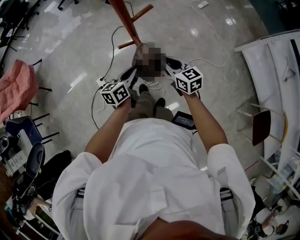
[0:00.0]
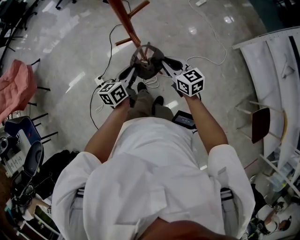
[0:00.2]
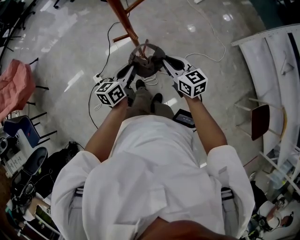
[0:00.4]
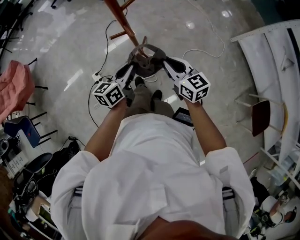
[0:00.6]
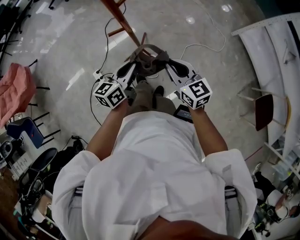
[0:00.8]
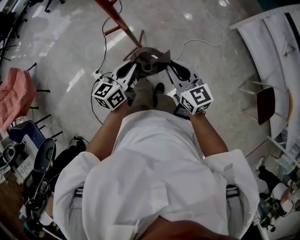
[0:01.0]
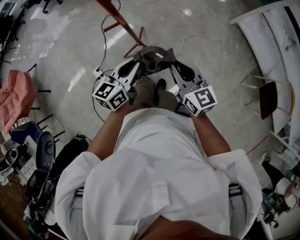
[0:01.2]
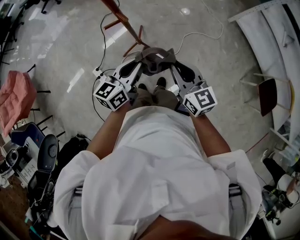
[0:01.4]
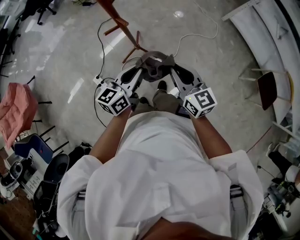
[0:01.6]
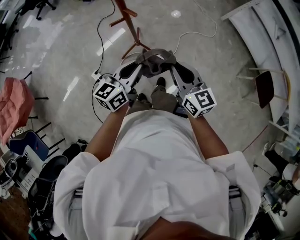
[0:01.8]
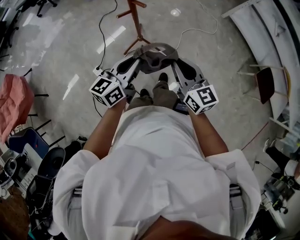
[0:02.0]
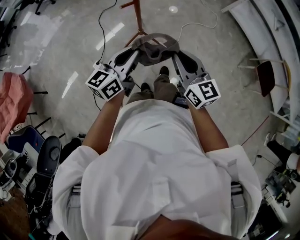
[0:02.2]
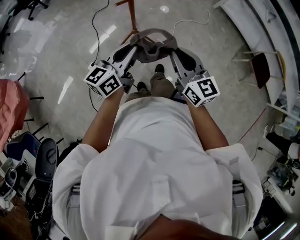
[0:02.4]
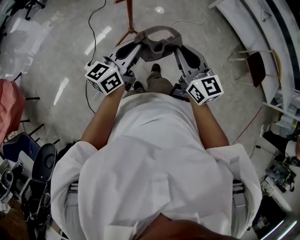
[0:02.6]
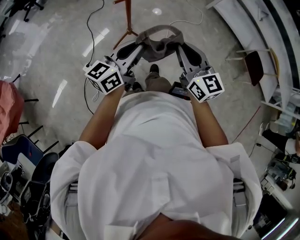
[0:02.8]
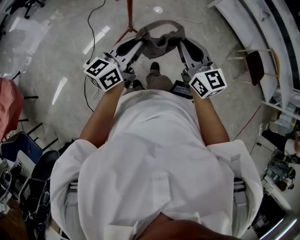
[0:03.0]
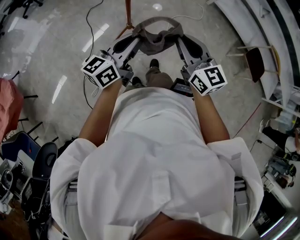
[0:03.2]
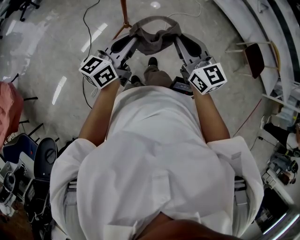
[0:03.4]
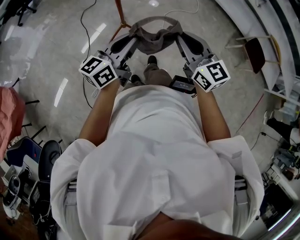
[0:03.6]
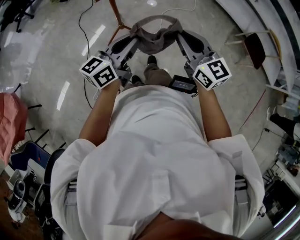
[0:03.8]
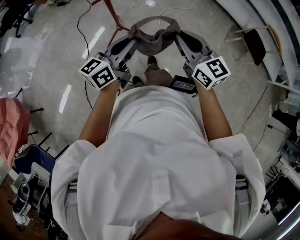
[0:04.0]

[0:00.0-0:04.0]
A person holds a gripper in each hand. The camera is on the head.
0:00.0 to 0:01.4: The right gripper heads backward and upward, covering some 20 cm, and rotates approximately 20 degrees, while the left gripper travels backward, upward and to the right by approximately 15 cm, and swivels roughly 20 degrees.
0:01.4 to 0:02.6: The left gripper is displaced backward and upward by approximately 15 cm, while the right gripper shifts roughly 15 cm backward.
0:02.6 to 0:04.0: The grippers make only small movements.

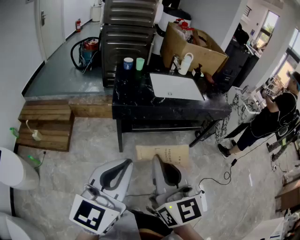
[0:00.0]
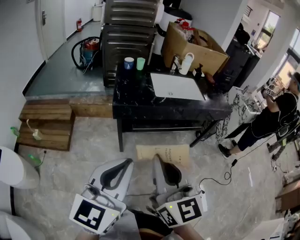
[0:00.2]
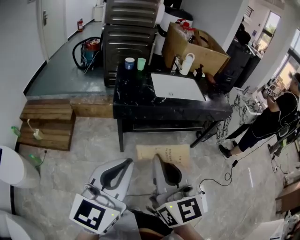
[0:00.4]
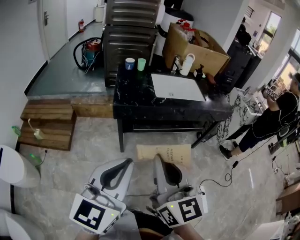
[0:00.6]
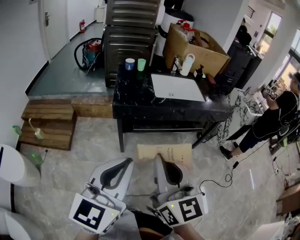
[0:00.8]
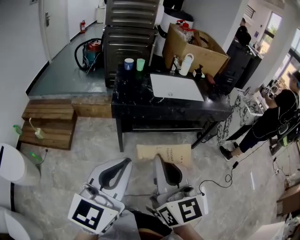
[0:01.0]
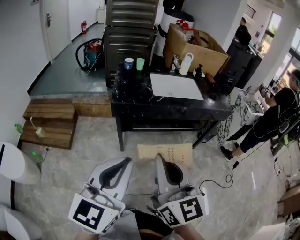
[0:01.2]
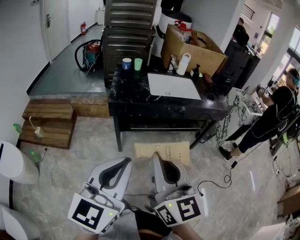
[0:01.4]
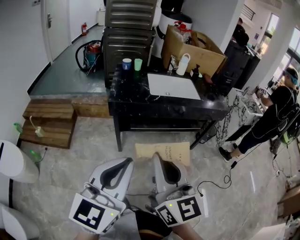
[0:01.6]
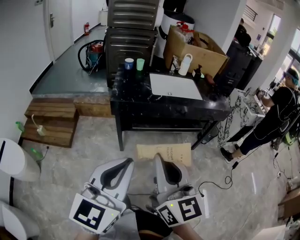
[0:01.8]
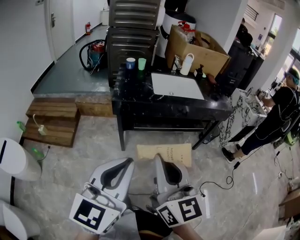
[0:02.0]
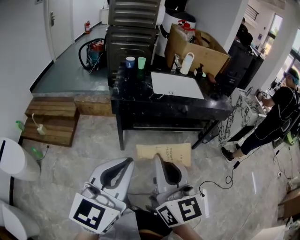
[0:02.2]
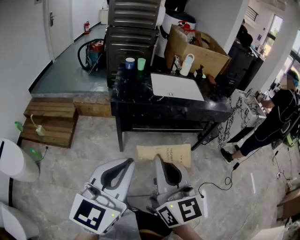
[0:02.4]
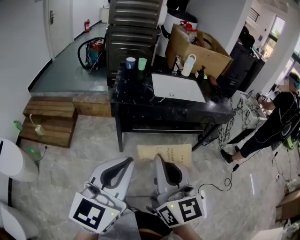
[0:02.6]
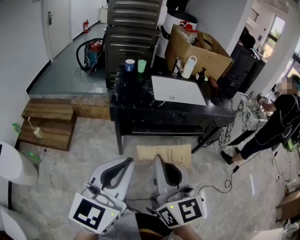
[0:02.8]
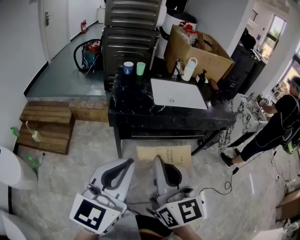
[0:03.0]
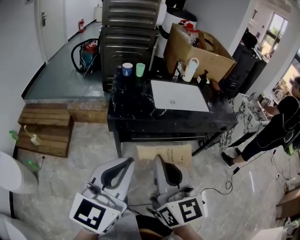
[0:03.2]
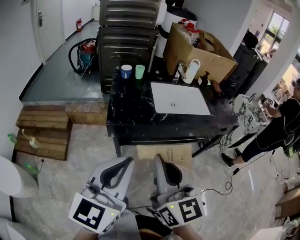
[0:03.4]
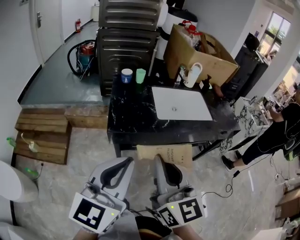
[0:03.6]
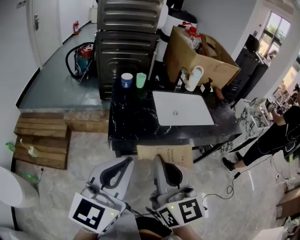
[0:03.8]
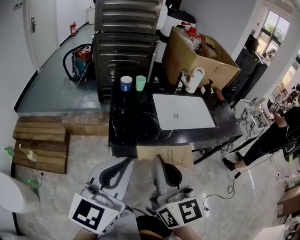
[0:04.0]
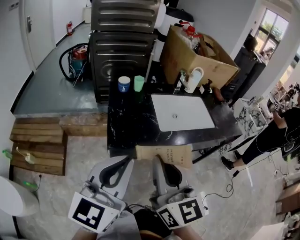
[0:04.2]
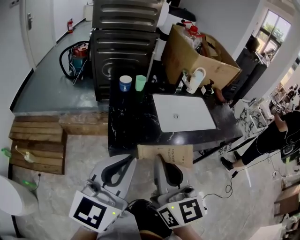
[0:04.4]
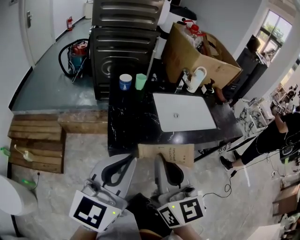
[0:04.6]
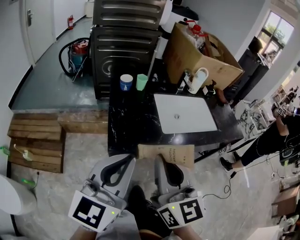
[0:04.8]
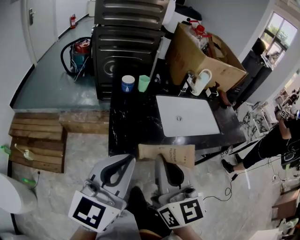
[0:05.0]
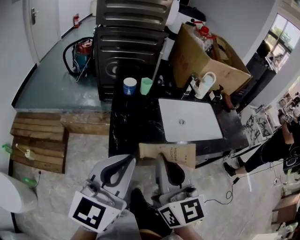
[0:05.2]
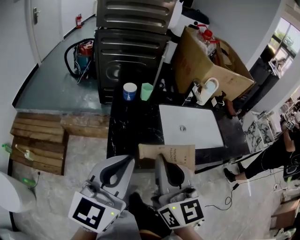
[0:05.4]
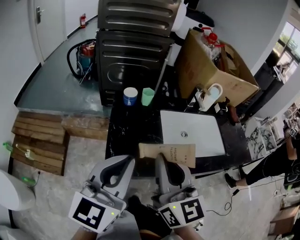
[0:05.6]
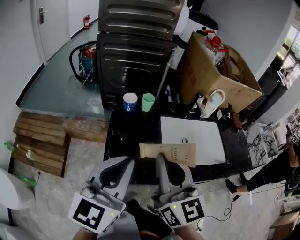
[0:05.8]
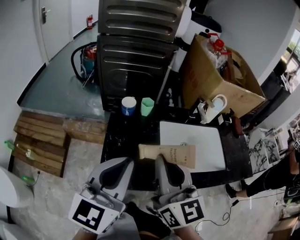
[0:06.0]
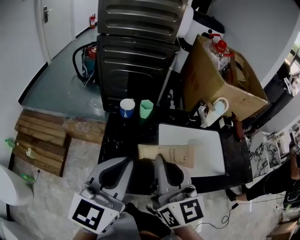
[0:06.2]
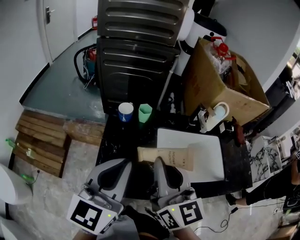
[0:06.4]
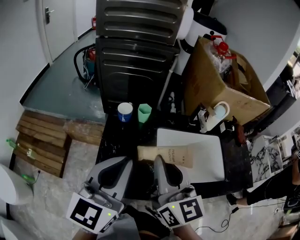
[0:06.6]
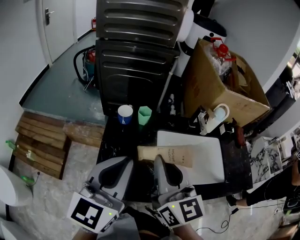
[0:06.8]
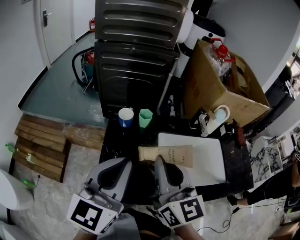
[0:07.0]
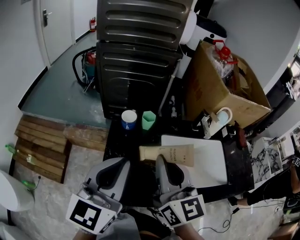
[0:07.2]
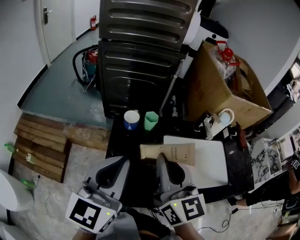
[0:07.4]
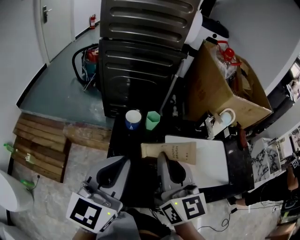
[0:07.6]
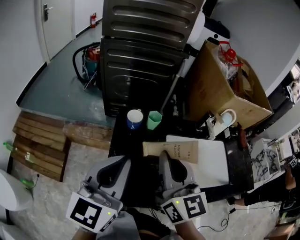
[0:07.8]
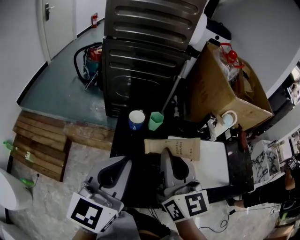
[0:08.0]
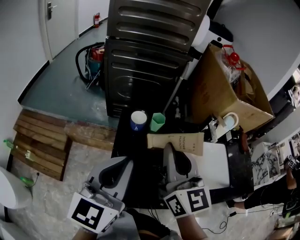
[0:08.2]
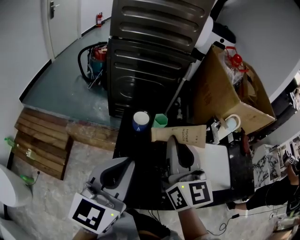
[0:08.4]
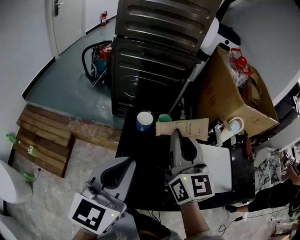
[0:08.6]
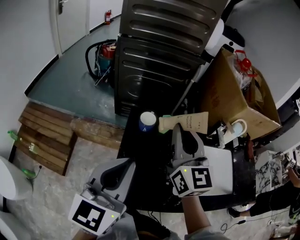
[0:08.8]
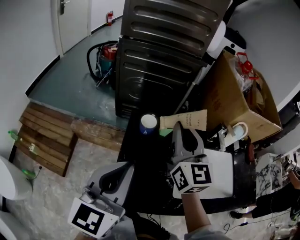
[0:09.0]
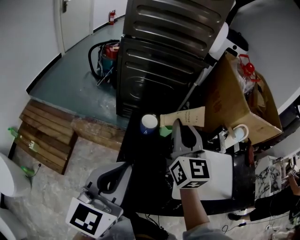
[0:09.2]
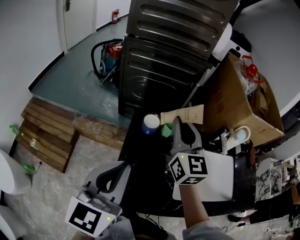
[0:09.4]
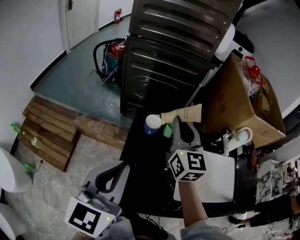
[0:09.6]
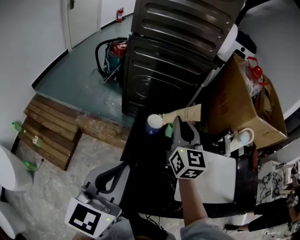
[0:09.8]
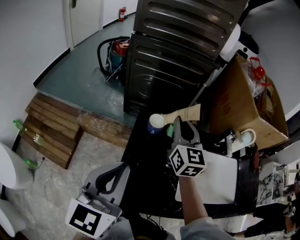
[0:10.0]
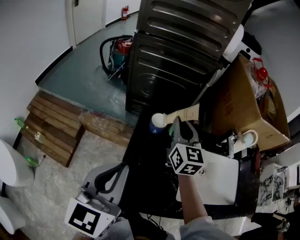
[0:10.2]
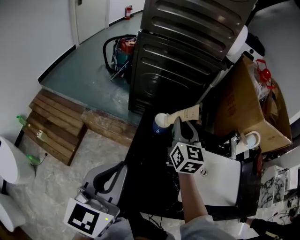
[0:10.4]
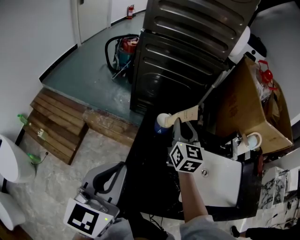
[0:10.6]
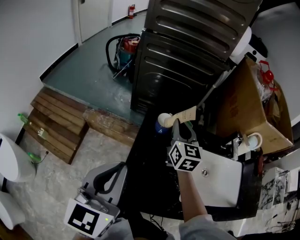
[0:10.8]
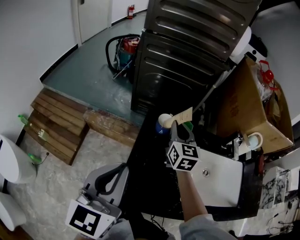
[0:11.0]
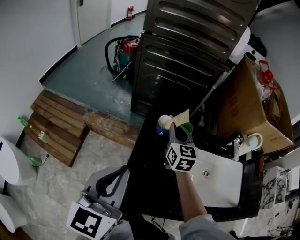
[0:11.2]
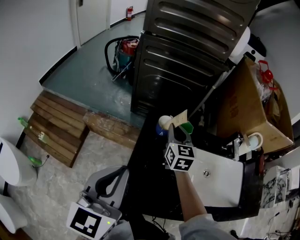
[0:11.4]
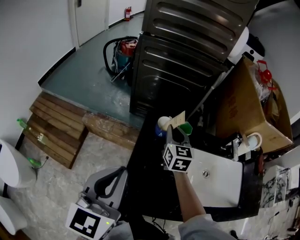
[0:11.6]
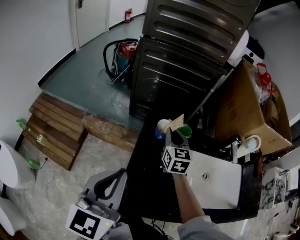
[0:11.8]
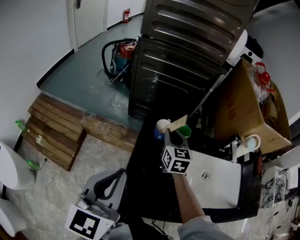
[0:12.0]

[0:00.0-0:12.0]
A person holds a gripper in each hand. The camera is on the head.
0:00.0 to 0:01.6: The grippers both shift to the right by roughly 5 cm.
0:01.6 to 0:03.0: Both grippers move forward, about 10 cm.
0:03.0 to 0:04.4: Both grippers move forward and to the left, approximately 25 cm.
0:04.4 to 0:06.0: Both grippers travel together forward, approximately 20 cm.
0:06.0 to 0:07.6: The two grippers go approximately 10 cm forward.
0:07.6 to 0:09.0: The right gripper travels forward by about 10 cm.
0:09.0 to 0:10.4: The right gripper travels downward and forward by about 15 cm.
0:10.4 to 0:12.0: The right gripper shifts approximately 10 cm downward.

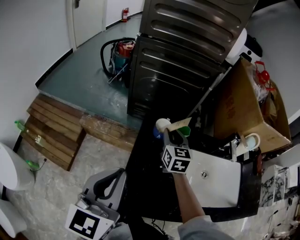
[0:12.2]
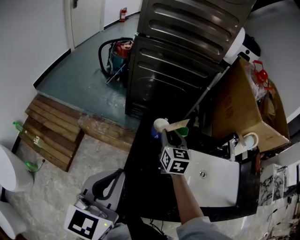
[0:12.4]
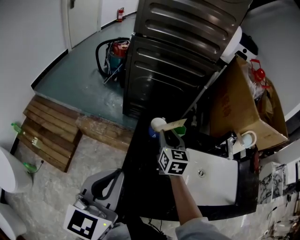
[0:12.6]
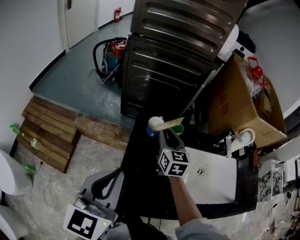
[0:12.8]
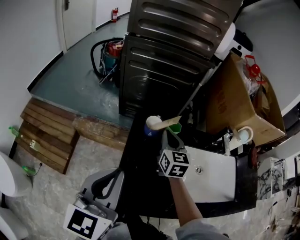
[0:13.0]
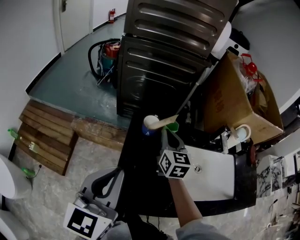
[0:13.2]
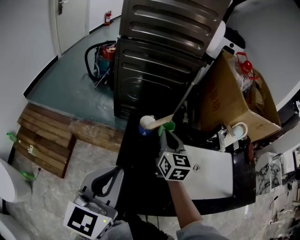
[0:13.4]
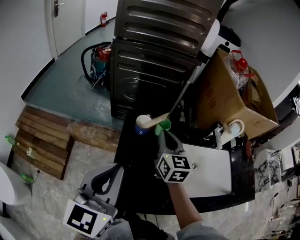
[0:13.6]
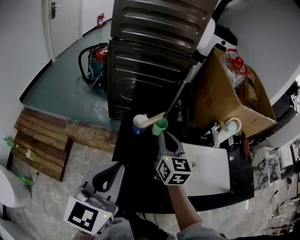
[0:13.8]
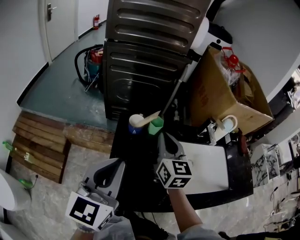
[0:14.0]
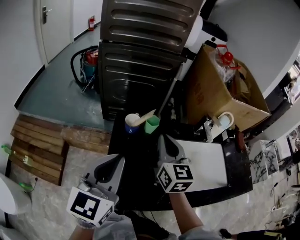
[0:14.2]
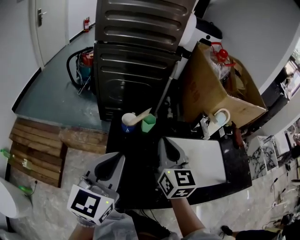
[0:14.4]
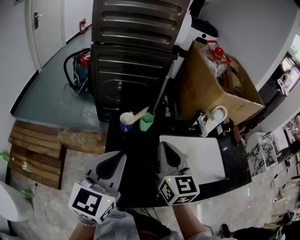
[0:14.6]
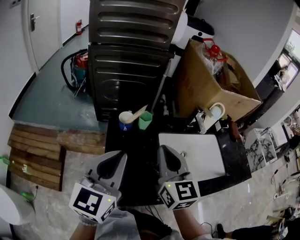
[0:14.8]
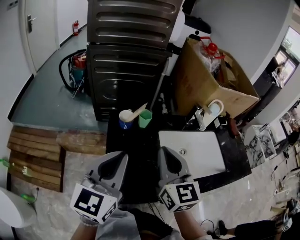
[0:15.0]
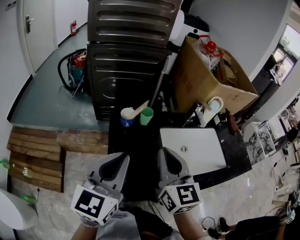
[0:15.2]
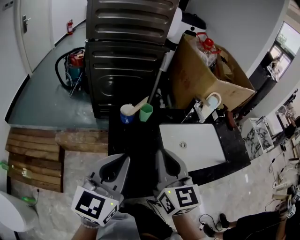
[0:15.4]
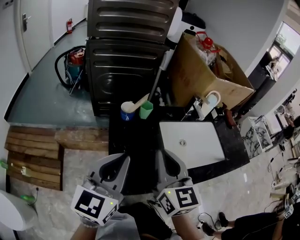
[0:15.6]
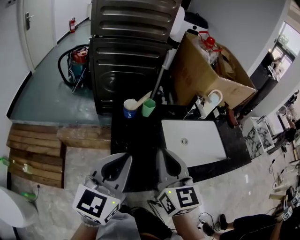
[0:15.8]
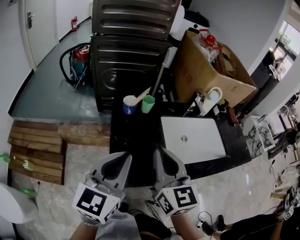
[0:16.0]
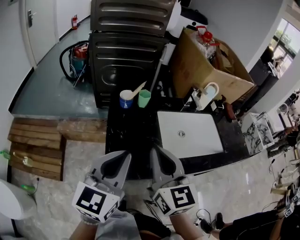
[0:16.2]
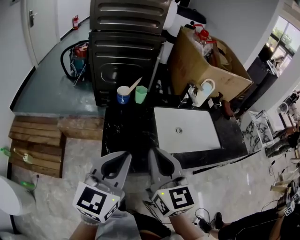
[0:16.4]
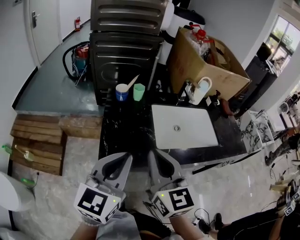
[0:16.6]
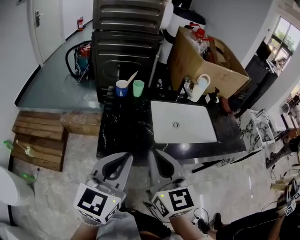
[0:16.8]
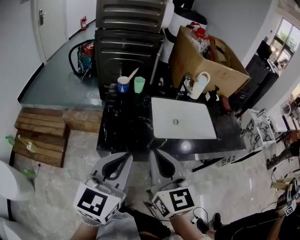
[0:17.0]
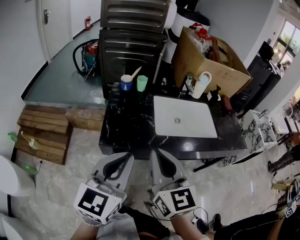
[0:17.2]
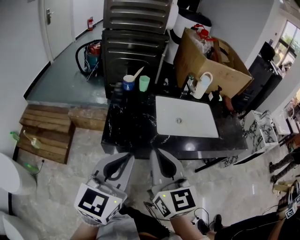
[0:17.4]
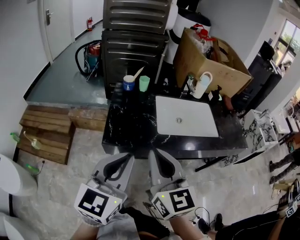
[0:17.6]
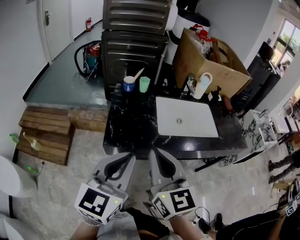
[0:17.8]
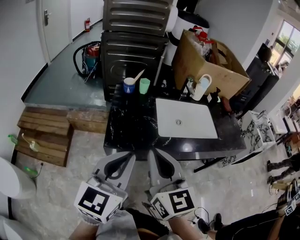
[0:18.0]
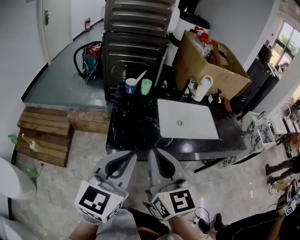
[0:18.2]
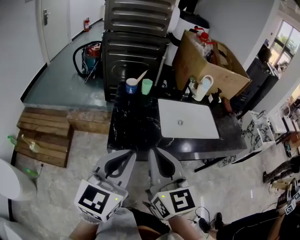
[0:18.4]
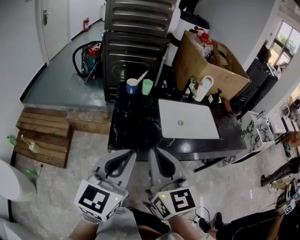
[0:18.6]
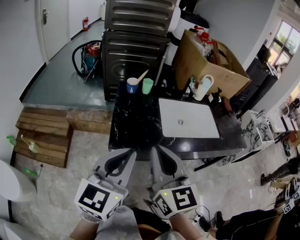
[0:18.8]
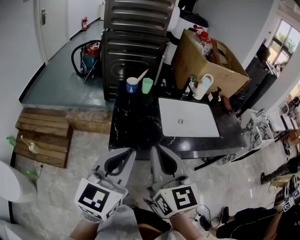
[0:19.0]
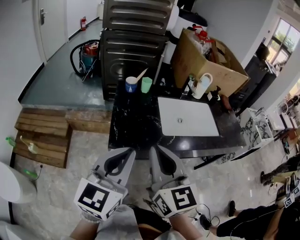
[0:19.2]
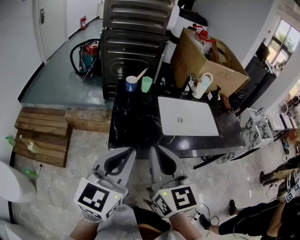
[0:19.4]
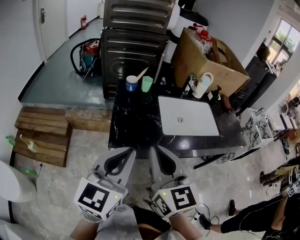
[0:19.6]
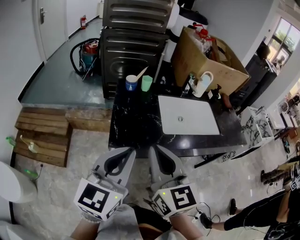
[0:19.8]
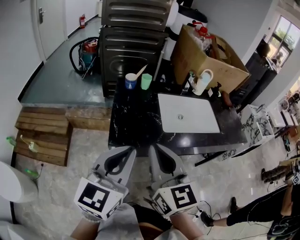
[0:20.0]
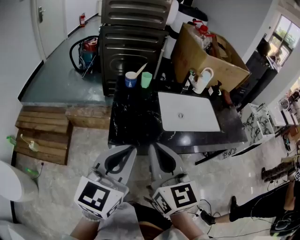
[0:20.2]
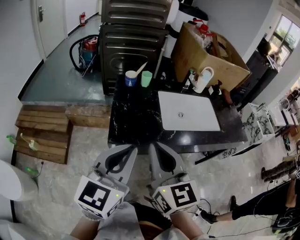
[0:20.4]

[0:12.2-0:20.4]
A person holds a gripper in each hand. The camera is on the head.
0:12.2 to 0:13.8: The left gripper shifts by about 5 cm; the right gripper is displaced upward, backward and to the right by roughly 15 cm, and closes up.
0:13.8 to 0:15.4: The right gripper is displaced backward by roughly 20 cm.
0:15.4 to 0:17.2: The two grippers go about 25 cm backward and to the right.
0:17.2 to 0:18.8: The two grippers go some 5 cm to the left.
0:18.8 to 0:20.4: The grippers move only a little.
